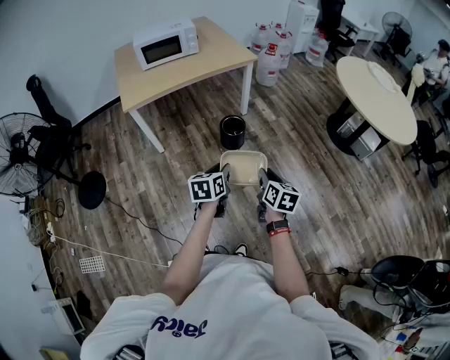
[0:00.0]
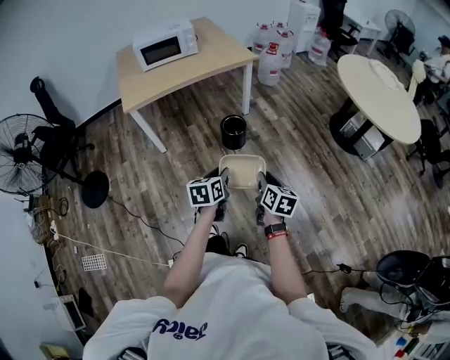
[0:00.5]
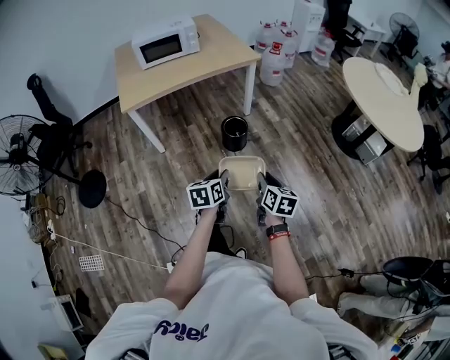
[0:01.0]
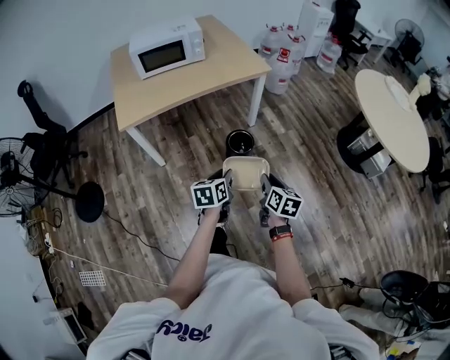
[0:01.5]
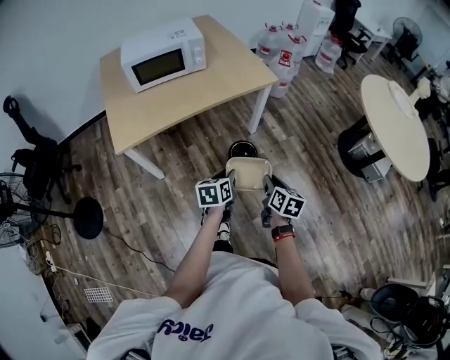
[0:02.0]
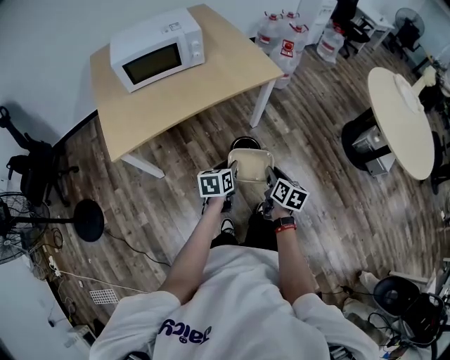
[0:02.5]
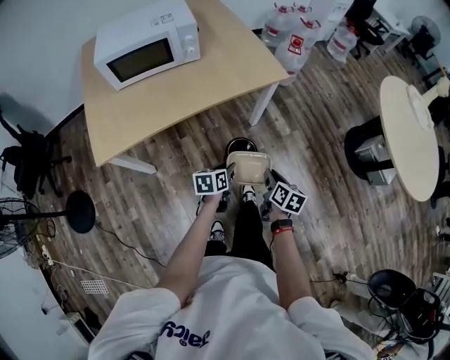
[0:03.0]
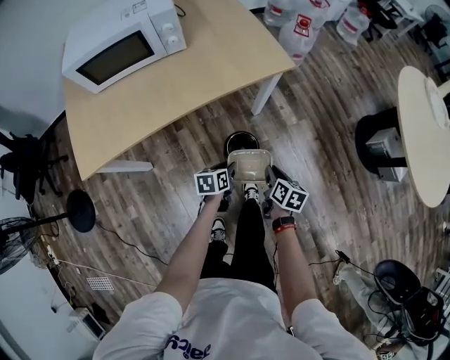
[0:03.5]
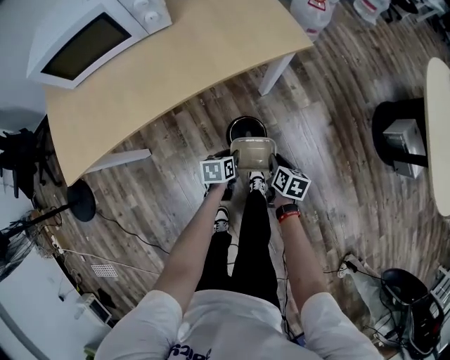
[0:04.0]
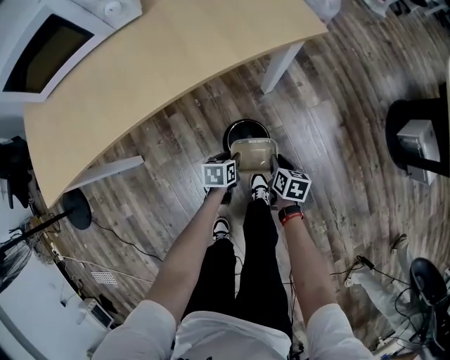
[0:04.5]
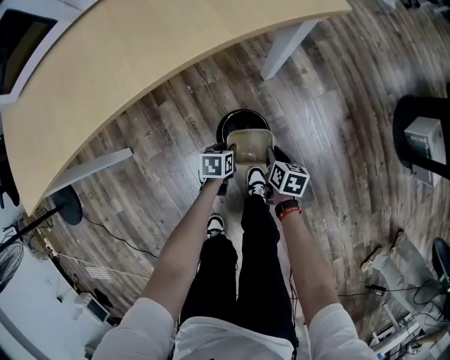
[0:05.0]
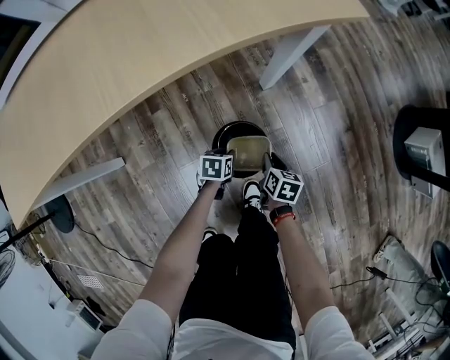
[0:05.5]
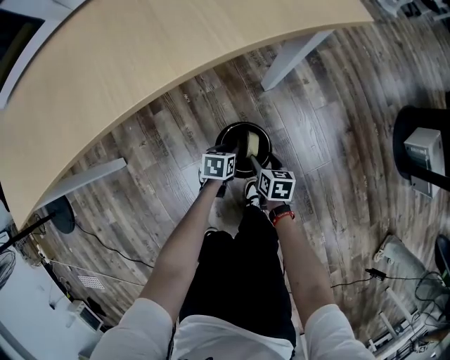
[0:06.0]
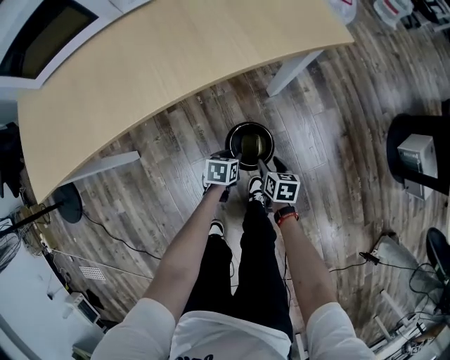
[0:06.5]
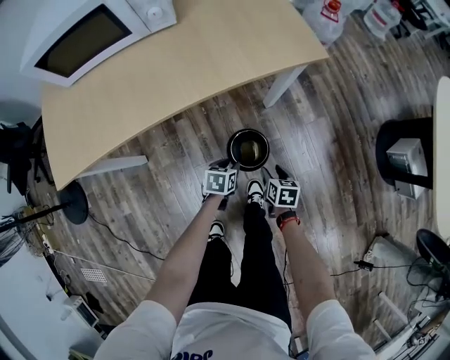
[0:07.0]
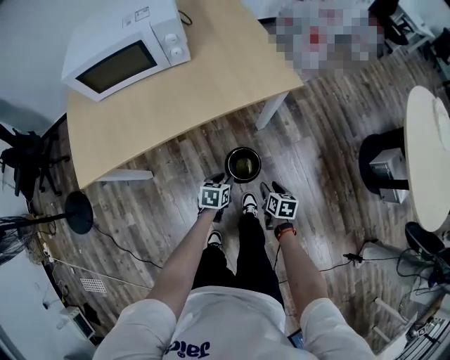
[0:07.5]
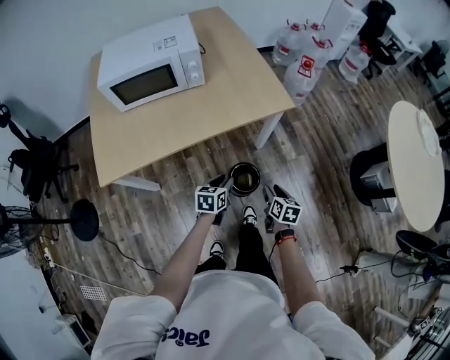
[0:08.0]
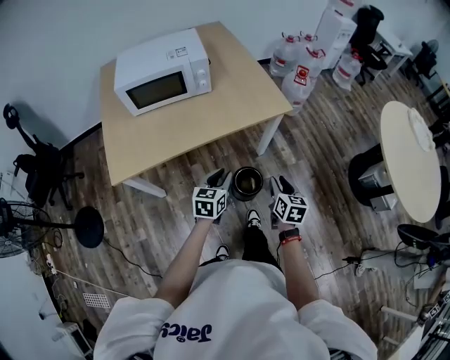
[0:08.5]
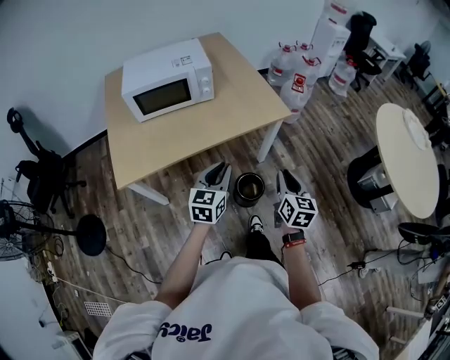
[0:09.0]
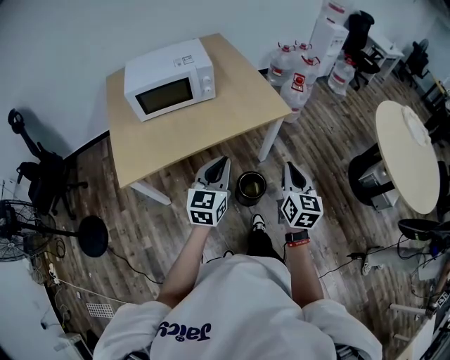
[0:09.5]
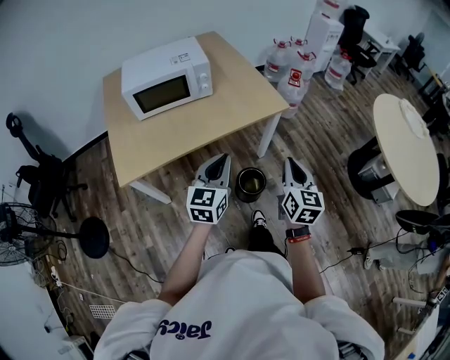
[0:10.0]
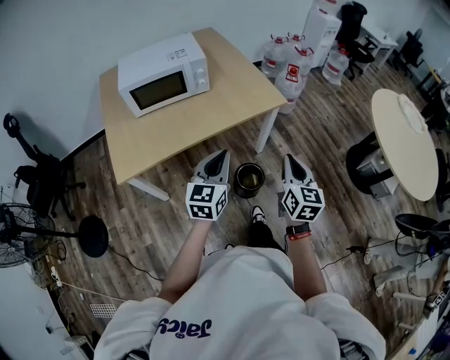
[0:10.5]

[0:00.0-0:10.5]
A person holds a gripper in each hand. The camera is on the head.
0:00.0 to 0:02.0: The two grippers go some 35 cm forward.
0:02.0 to 0:04.0: The right gripper shifts approximately 50 cm forward and downward. Meanwhile the left gripper shifts roughly 50 cm downward and forward, and rotates about 20 degrees.
0:04.0 to 0:06.5: The two grippers go some 20 cm downward. The right gripper opens.
0:06.5 to 0:08.5: Both grippers move upward, roughly 60 cm. The left gripper points its fingers roughly 30 degrees further upward, while the right gripper turns by about 30 degrees, and closes its fingers.
0:08.5 to 0:10.5: The left gripper travels upward and backward by roughly 15 cm, swivels about 20 degrees, and closes up. Meanwhile the right gripper goes some 15 cm upward, turns by roughly 20 degrees, and closes.

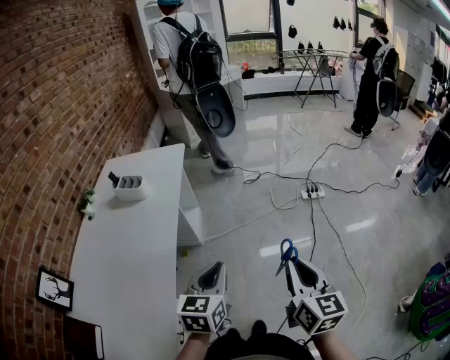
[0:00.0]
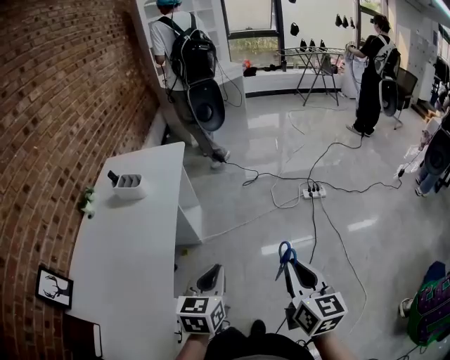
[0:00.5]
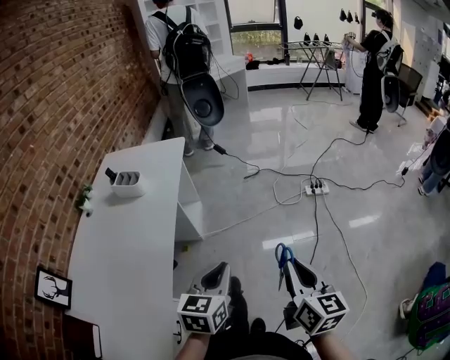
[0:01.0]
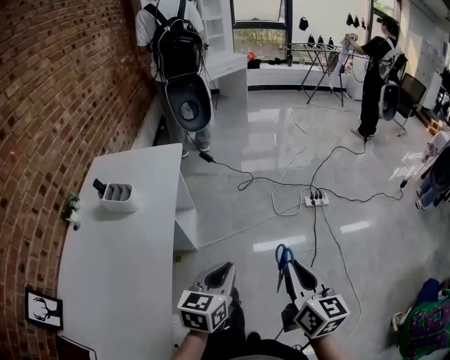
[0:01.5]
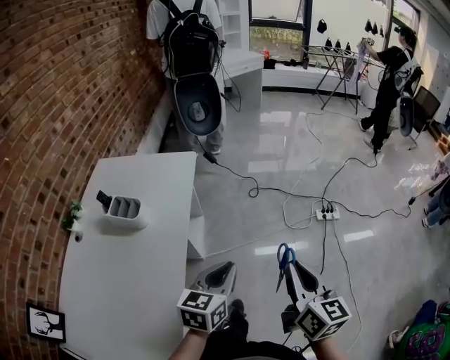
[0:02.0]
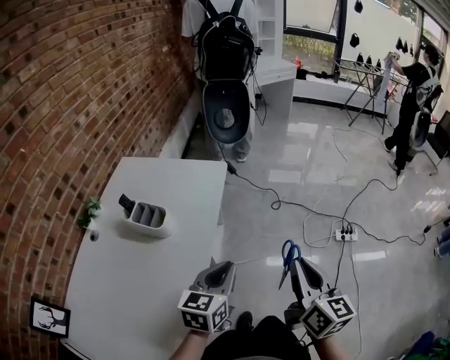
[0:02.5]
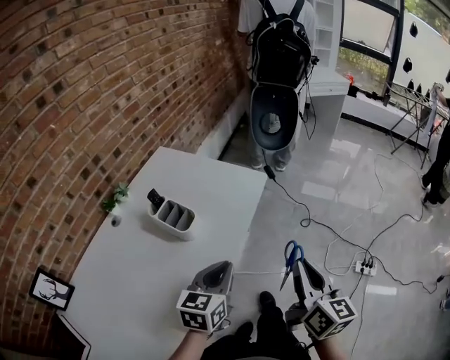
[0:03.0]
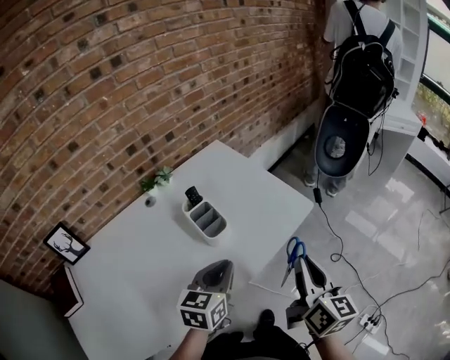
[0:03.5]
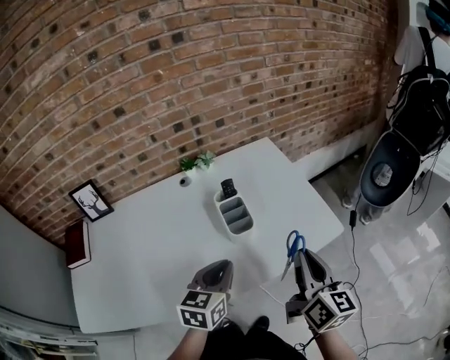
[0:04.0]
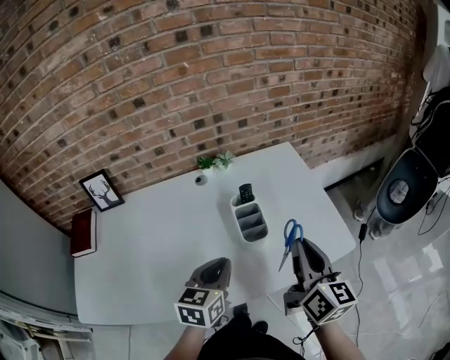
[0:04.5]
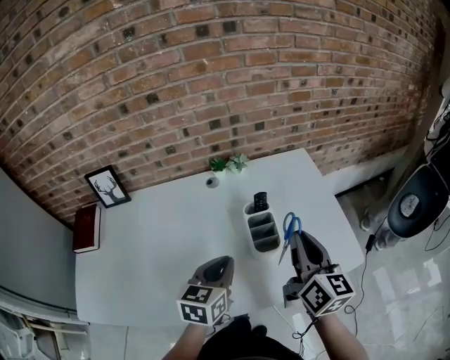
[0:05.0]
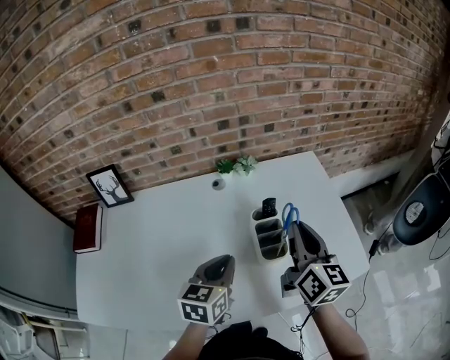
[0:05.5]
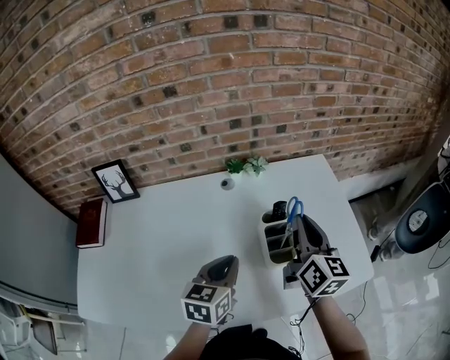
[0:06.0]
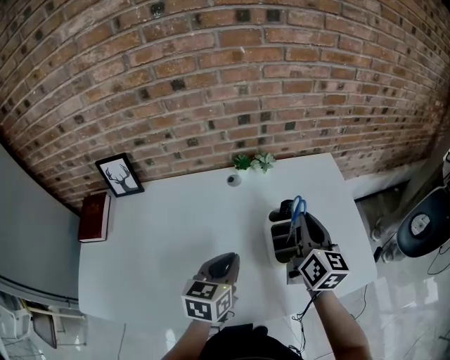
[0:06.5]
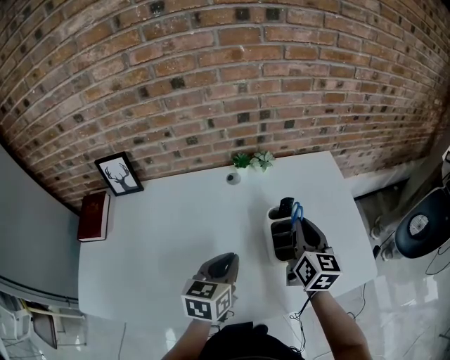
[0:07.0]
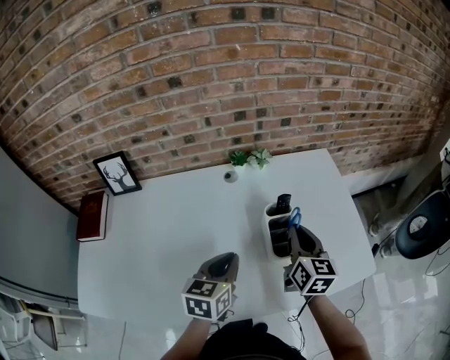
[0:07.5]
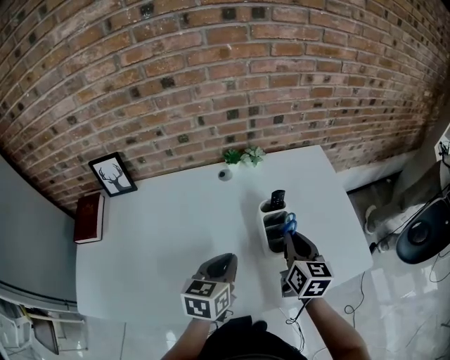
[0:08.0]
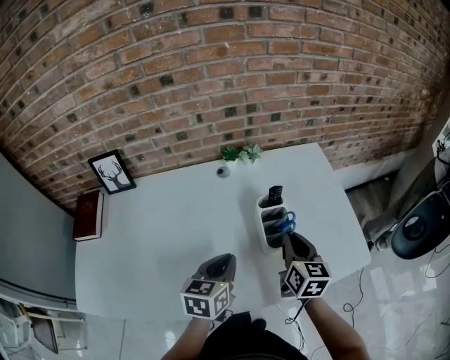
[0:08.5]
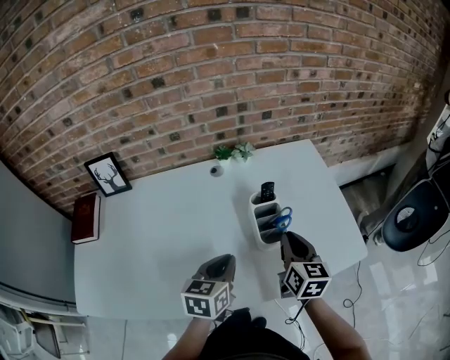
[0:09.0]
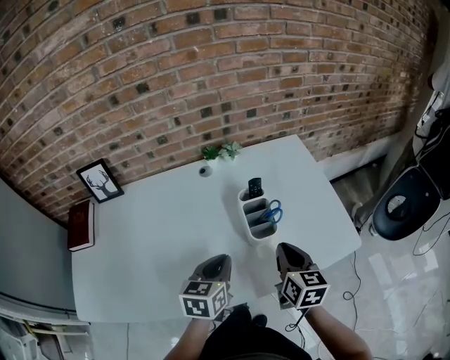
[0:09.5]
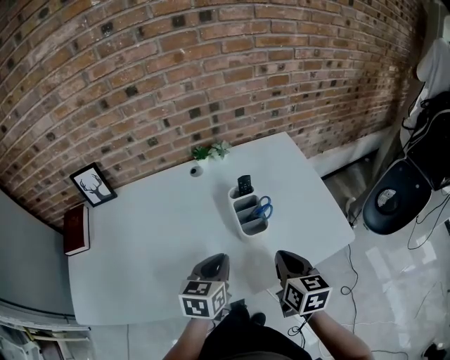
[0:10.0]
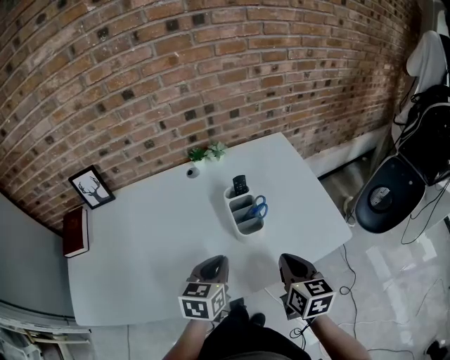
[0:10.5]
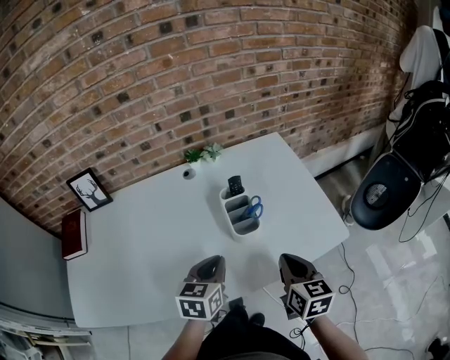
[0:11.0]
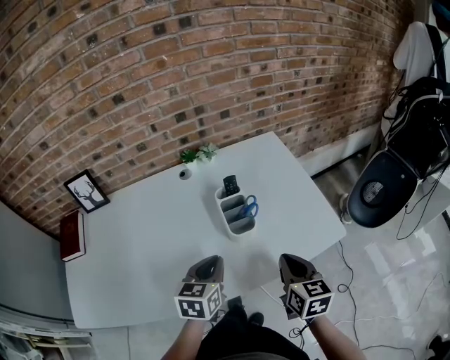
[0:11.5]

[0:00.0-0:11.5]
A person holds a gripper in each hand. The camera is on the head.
0:00.0 to 0:02.0: The grippers both shift forward by approximately 25 cm.
0:02.0 to 0:04.0: The left gripper moves approximately 30 cm, and rotates roughly 70 degrees. Meanwhile the right gripper moves roughly 40 cm, and swivels approximately 60 degrees.
0:04.0 to 0:06.0: The right gripper is displaced forward and to the left by about 25 cm. The left gripper travels to the left and forward by roughly 15 cm.
0:06.0 to 0:07.5: The right gripper moves downward, roughly 10 cm.
0:07.5 to 0:09.5: The right gripper goes approximately 10 cm backward, while the left gripper moves some 5 cm.
0:09.5 to 0:11.5: The right gripper is displaced to the right and backward by some 10 cm.

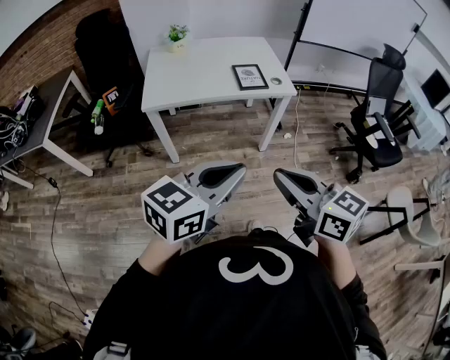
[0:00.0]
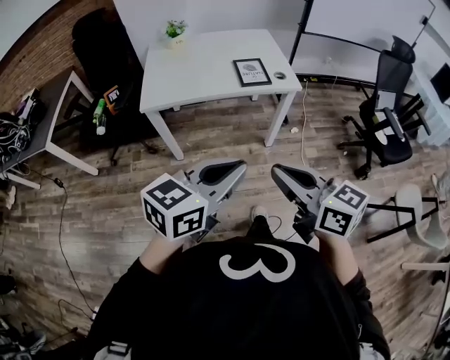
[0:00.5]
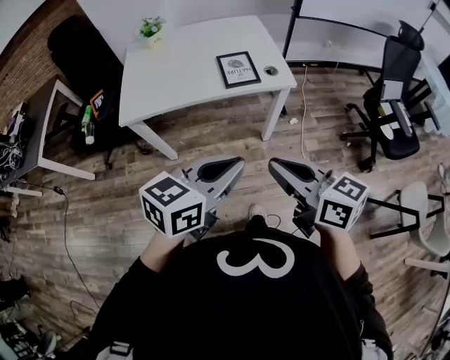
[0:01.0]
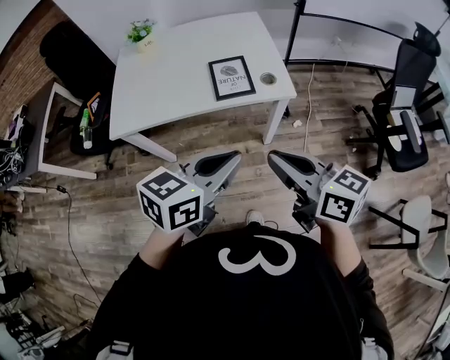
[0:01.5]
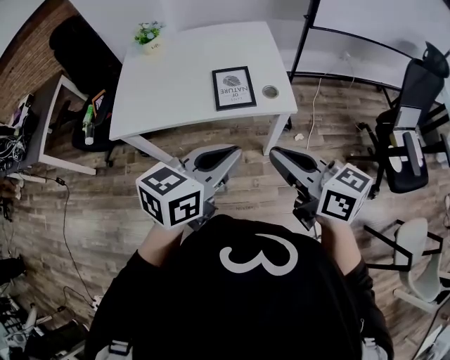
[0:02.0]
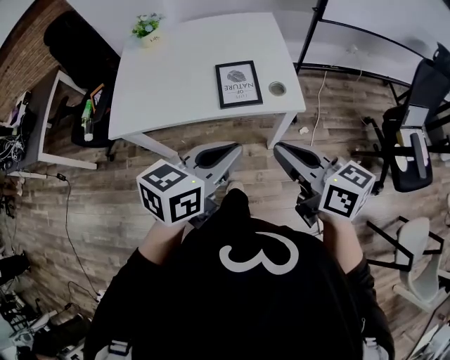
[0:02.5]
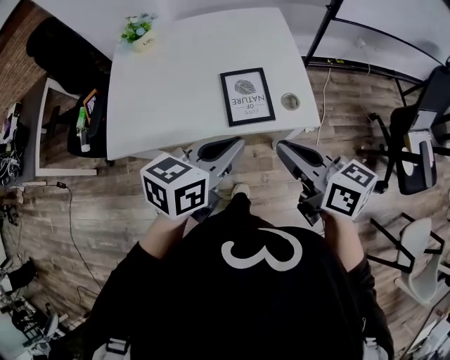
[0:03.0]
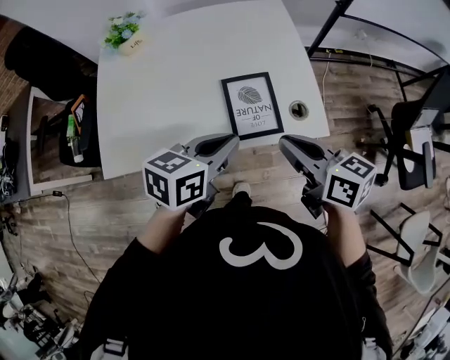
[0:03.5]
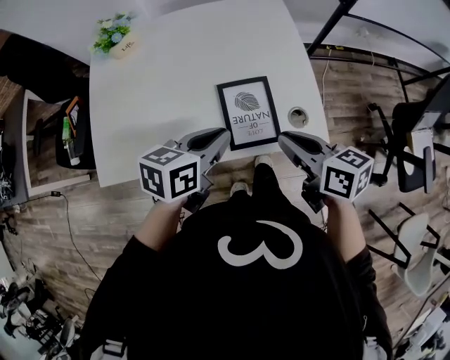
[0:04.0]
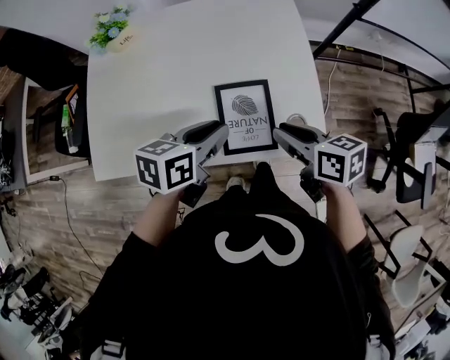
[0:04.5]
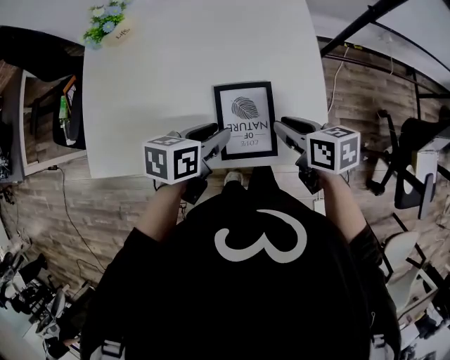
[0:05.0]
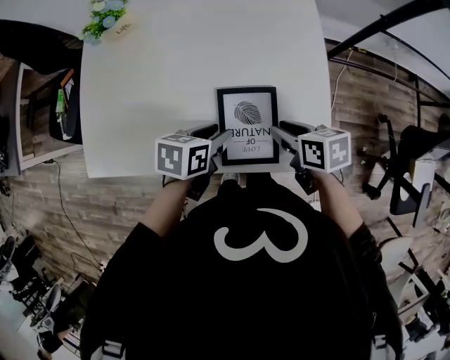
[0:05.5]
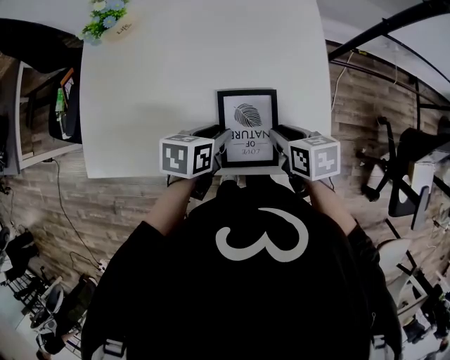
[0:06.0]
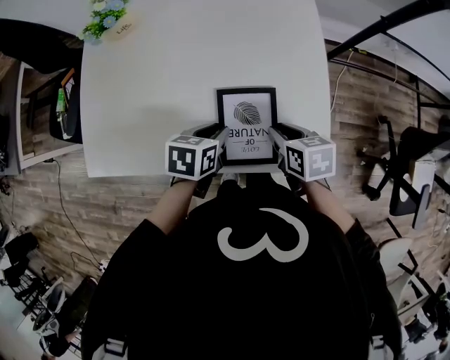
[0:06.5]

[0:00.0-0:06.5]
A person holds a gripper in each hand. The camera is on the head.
0:00.0 to 0:02.0: Both grippers travel together forward and to the right, roughly 35 cm.
0:02.0 to 0:04.5: Both grippers travel together forward and downward, about 35 cm. The left gripper rotates some 30 degrees. Meanwhile the right gripper turns by roughly 30 degrees.
0:04.5 to 0:06.5: The grippers both shift downward by roughly 10 cm. The left gripper swivels about 20 degrees; the right gripper turns by some 20 degrees.
